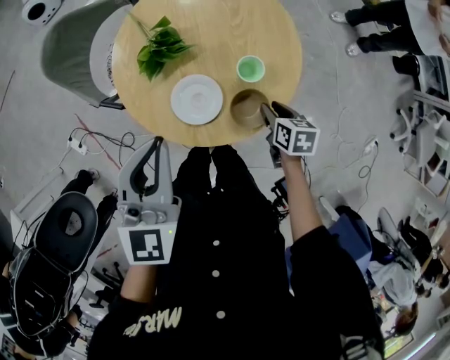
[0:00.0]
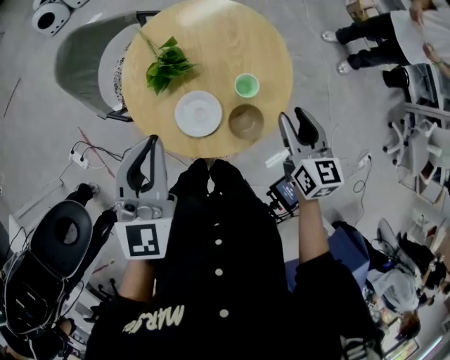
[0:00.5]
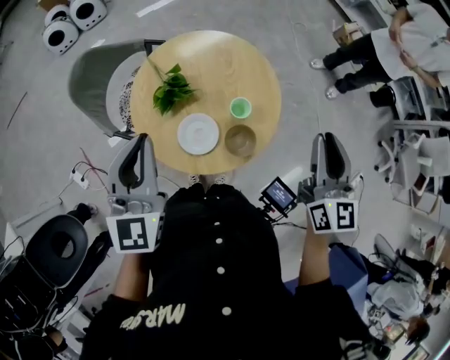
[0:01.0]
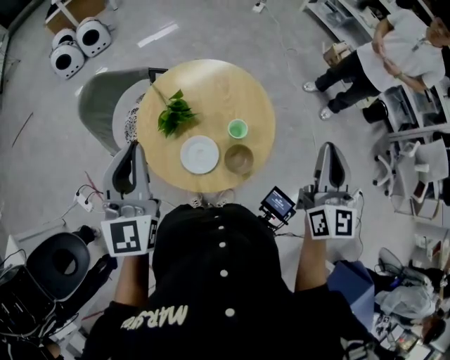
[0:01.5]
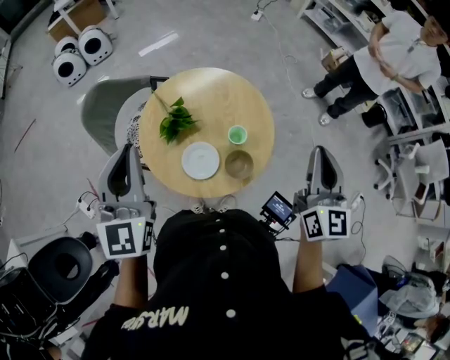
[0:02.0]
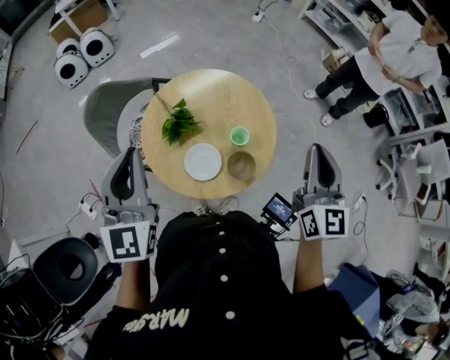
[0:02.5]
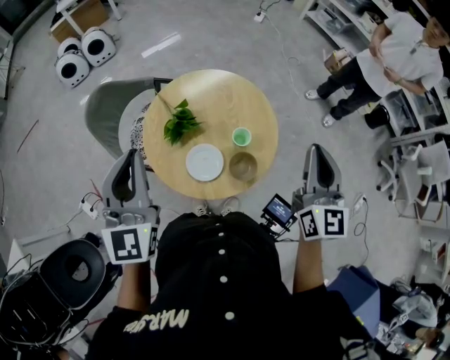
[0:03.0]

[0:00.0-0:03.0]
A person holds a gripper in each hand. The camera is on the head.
0:00.0 to 0:01.5: The right gripper goes about 40 cm upward, angles its fingers upward, by approximately 60 degrees, and closes its fingers, while the left gripper heads upward and to the left, covering approximately 15 cm.
0:01.5 to 0:03.0: The grippers make only small movements.

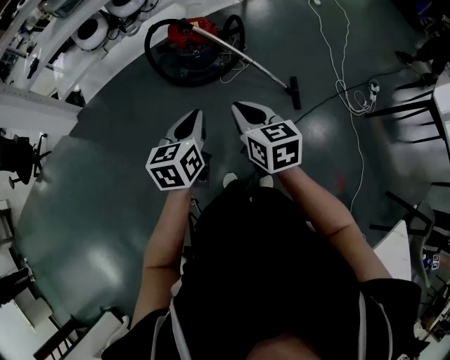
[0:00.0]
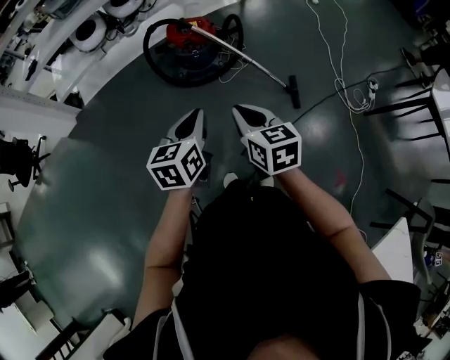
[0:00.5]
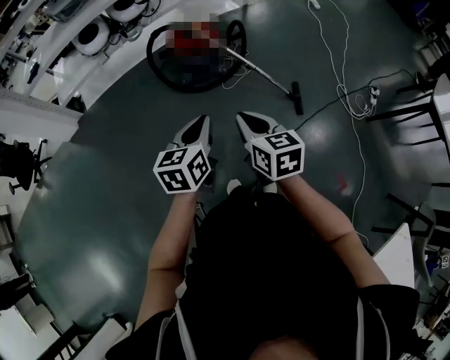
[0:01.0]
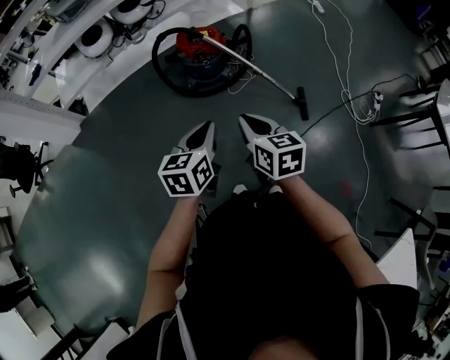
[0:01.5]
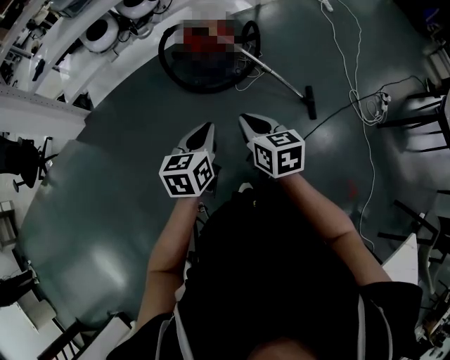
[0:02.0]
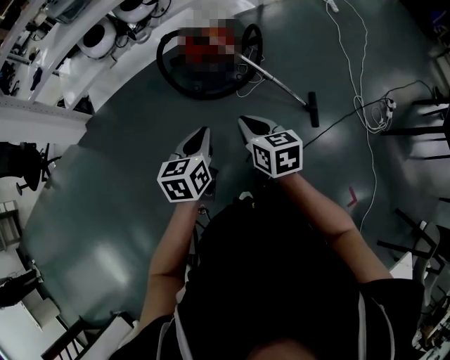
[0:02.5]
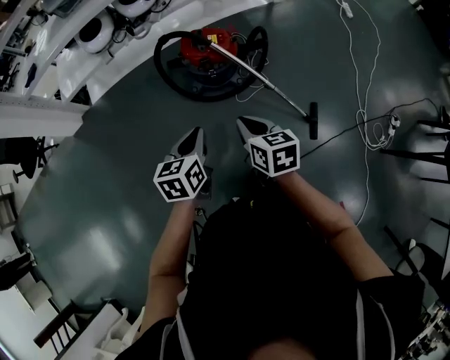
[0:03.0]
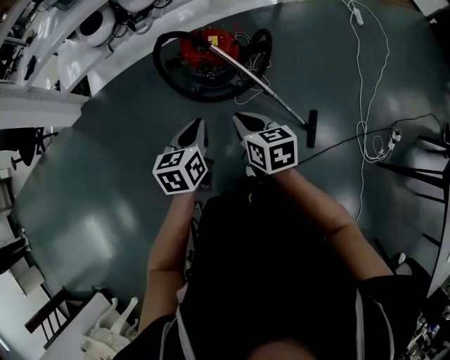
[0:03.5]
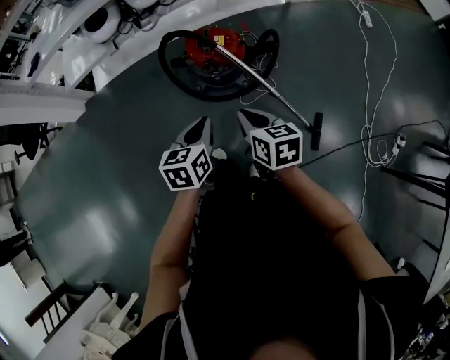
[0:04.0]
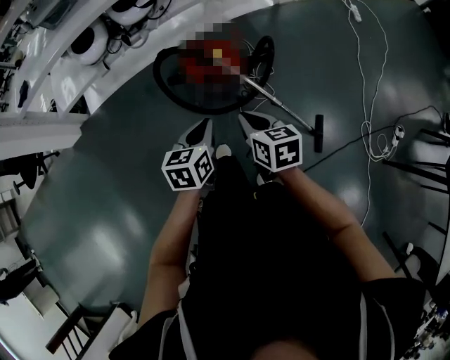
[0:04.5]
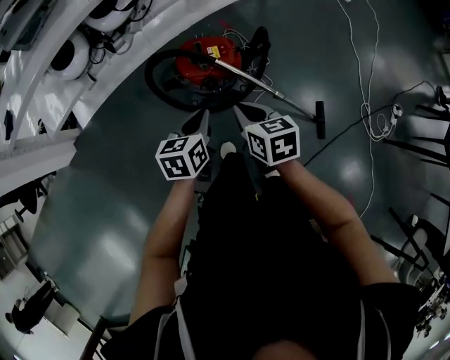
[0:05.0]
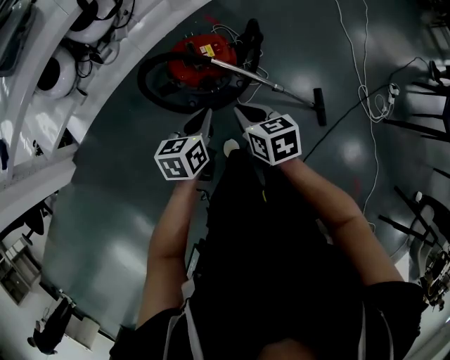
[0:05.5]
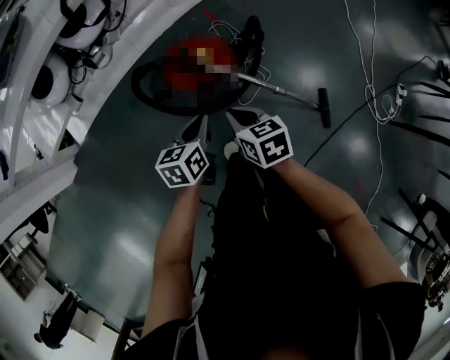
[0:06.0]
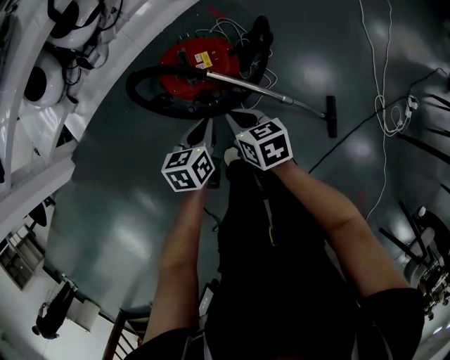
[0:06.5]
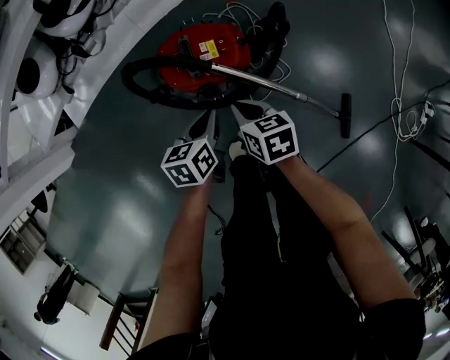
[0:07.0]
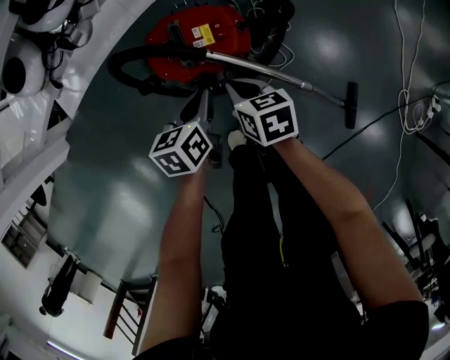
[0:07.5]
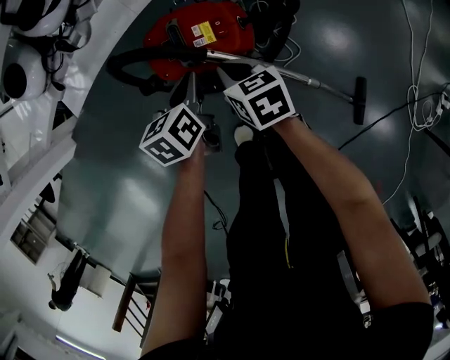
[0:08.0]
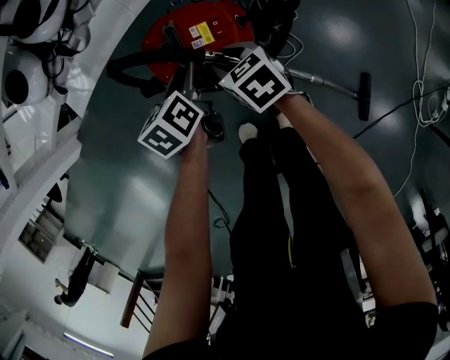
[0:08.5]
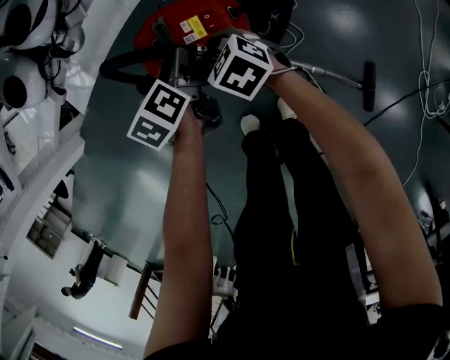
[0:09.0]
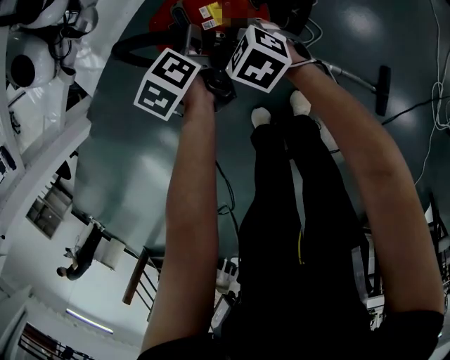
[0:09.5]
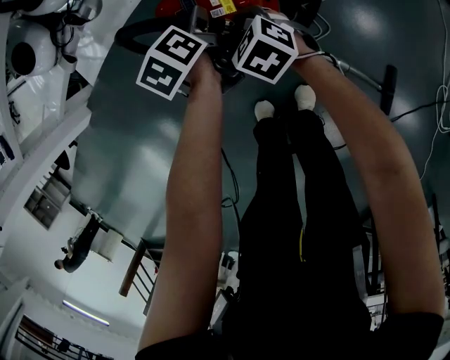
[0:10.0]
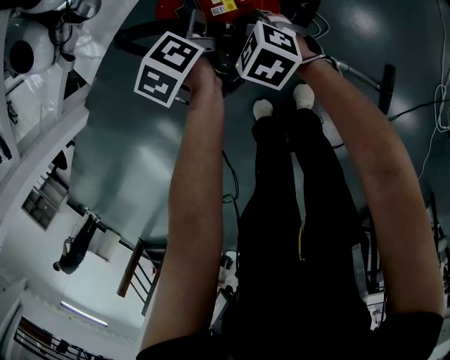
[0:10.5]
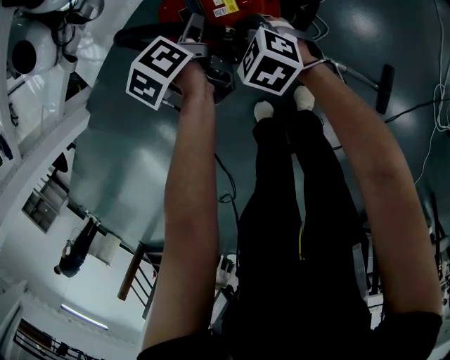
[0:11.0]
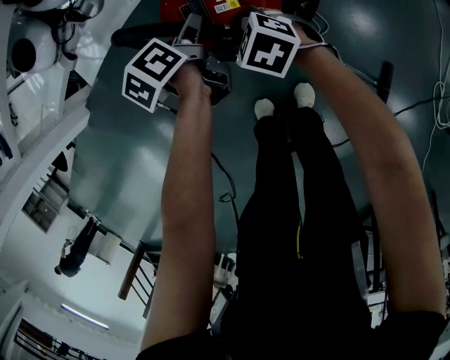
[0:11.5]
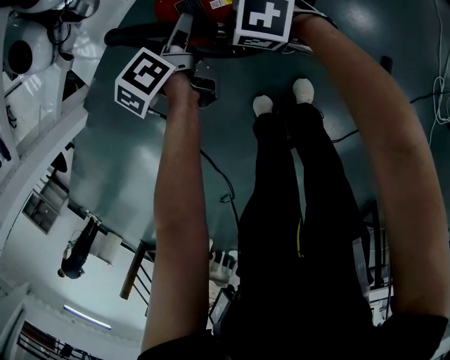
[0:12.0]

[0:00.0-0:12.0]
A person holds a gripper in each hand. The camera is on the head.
0:00.0 to 0:02.0: The grippers both shift to the left and forward by some 10 cm.
0:02.0 to 0:04.0: The two grippers go about 30 cm forward and to the right.
0:04.0 to 0:06.0: The right gripper heads forward, downward and to the left, covering some 25 cm, while the left gripper travels forward and downward by approximately 25 cm, and rotates some 20 degrees.
0:06.0 to 0:08.0: The grippers both shift downward and forward by roughly 25 cm.
0:08.0 to 0:10.0: The left gripper is displaced forward by approximately 5 cm, changes its angle by some 20 degrees, and opens; the right gripper moves roughly 5 cm, changes its angle by roughly 40 degrees, and opens up.
0:10.0 to 0:12.0: The right gripper shifts by approximately 5 cm, and turns by approximately 30 degrees.

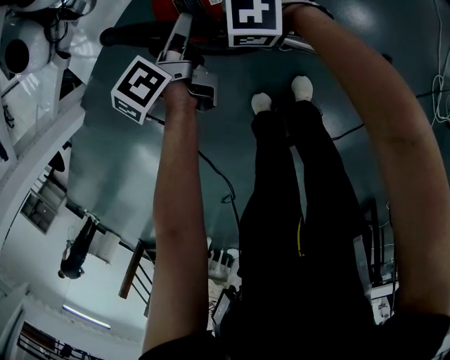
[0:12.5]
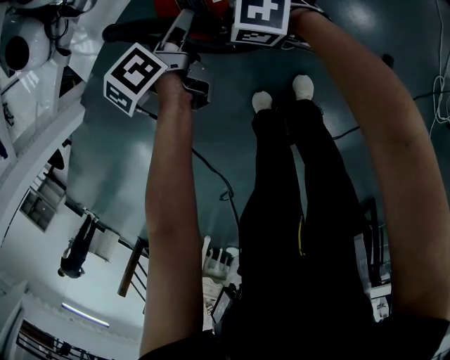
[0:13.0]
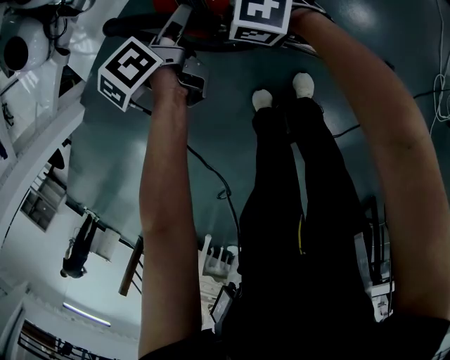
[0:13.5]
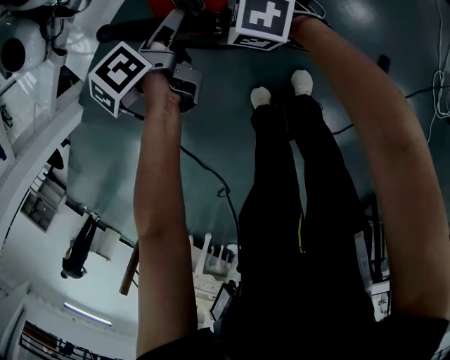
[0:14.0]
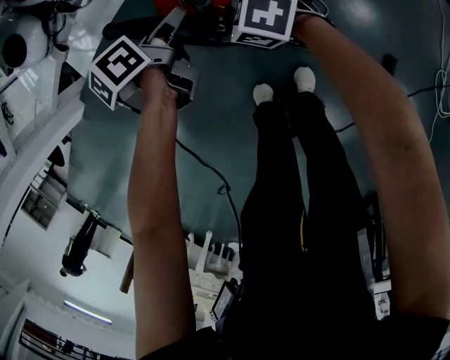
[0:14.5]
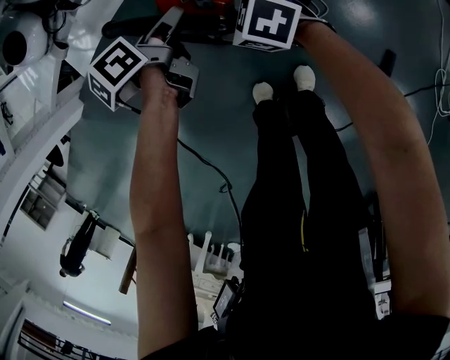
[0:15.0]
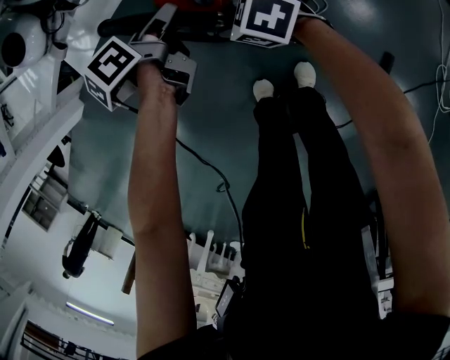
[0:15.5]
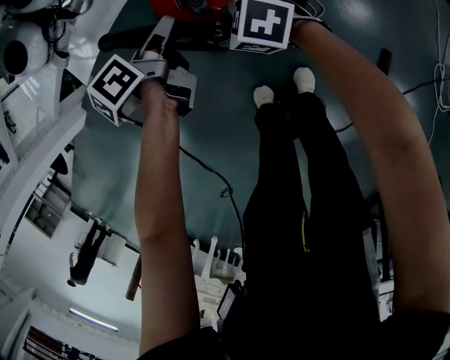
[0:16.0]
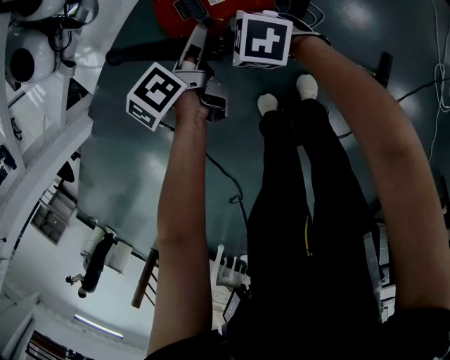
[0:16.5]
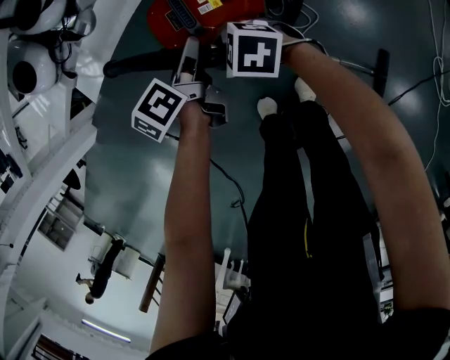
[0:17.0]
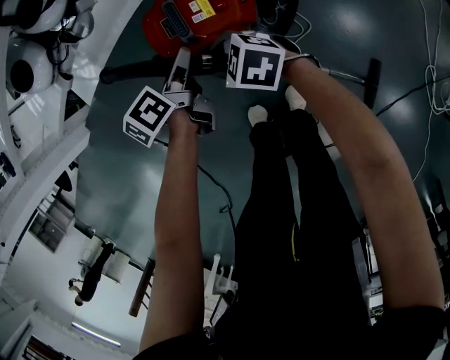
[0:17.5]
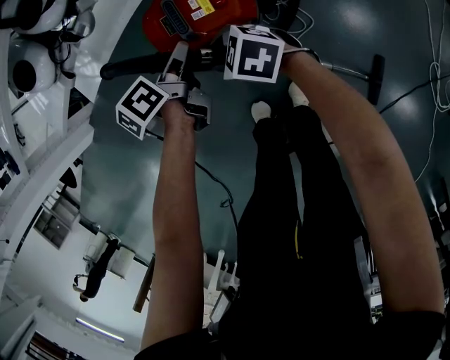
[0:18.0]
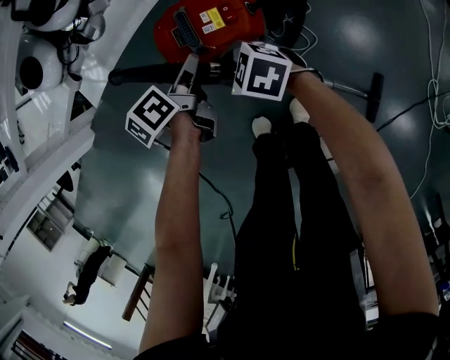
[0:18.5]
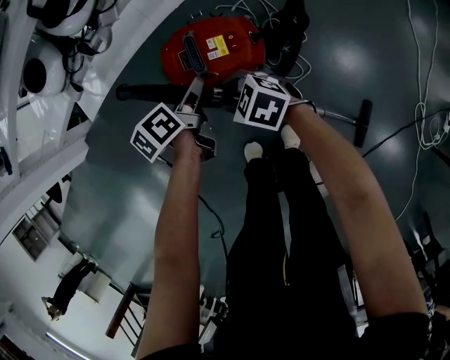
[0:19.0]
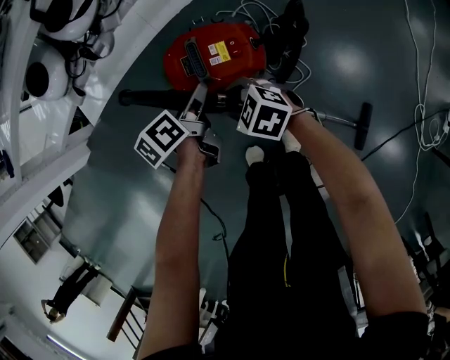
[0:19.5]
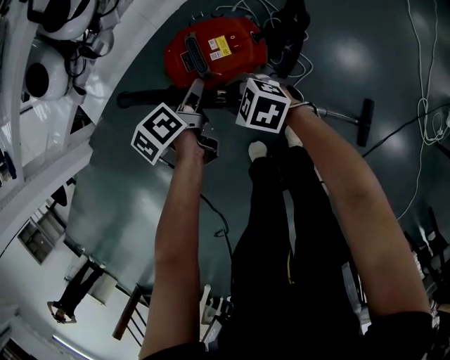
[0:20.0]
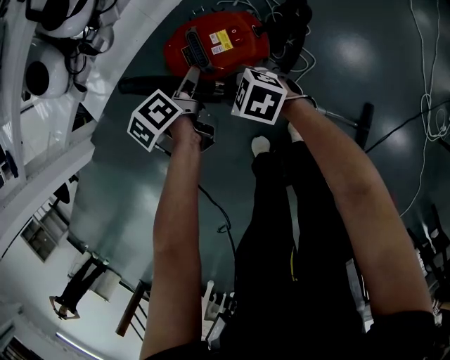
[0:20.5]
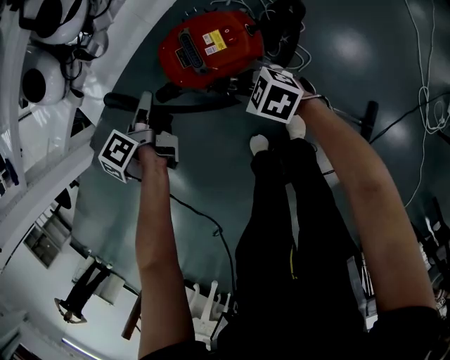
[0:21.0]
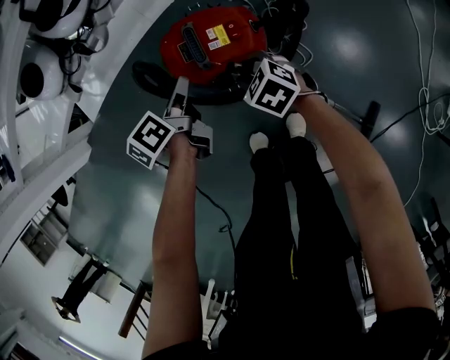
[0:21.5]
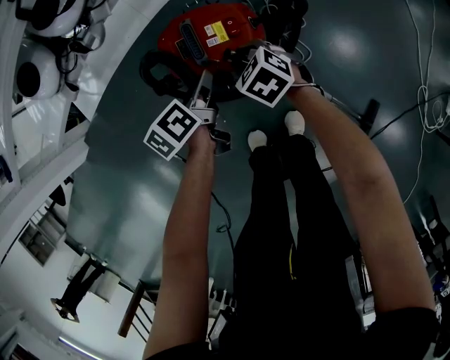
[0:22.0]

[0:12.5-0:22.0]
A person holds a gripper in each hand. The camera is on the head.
0:12.5 to 0:16.5: The grippers move only a little.
0:16.5 to 0:20.0: The grippers make only small movements.
0:20.0 to 0:22.0: The right gripper travels to the right by roughly 5 cm, and turns by roughly 20 degrees; the left gripper reaches about 10 cm to the left, then returns.

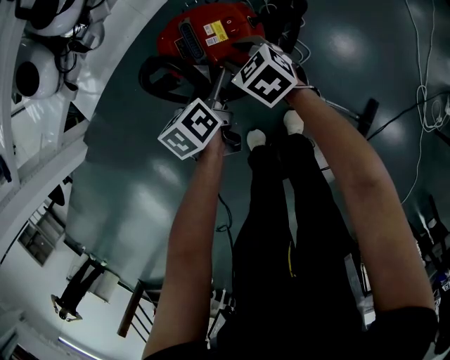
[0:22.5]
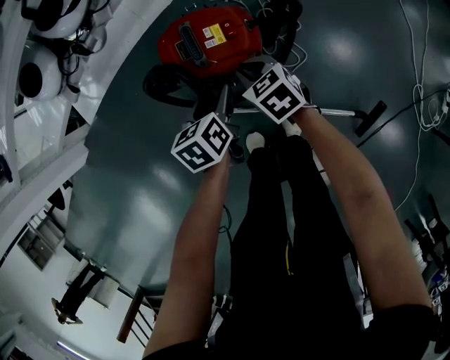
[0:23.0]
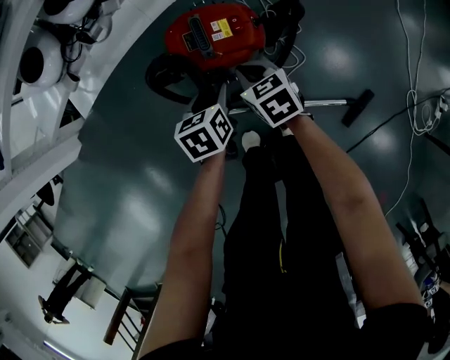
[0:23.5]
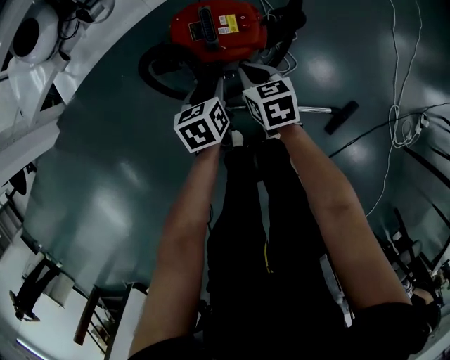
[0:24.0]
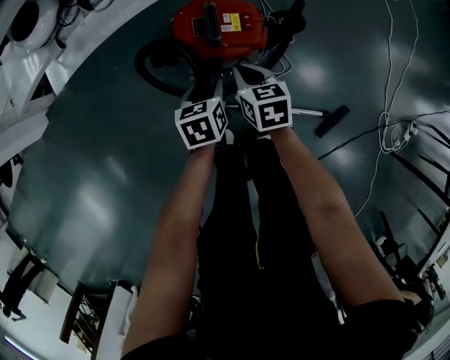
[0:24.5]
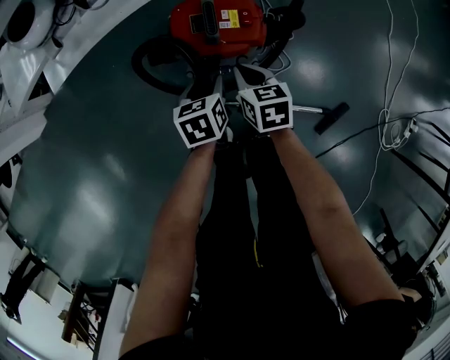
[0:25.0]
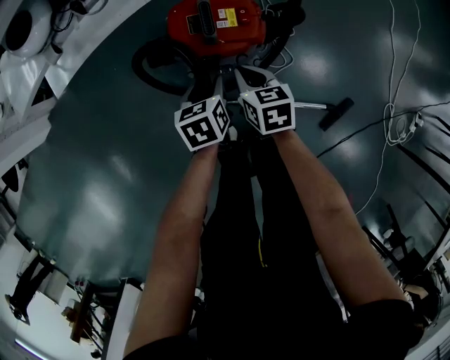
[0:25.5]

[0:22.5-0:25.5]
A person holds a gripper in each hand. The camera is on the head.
0:22.5 to 0:24.0: The right gripper goes some 5 cm backward, changes its angle by approximately 20 degrees, and closes up. The left gripper travels to the left by some 5 cm.
0:24.0 to 0:25.5: There are only small adjustments of the grippers.
